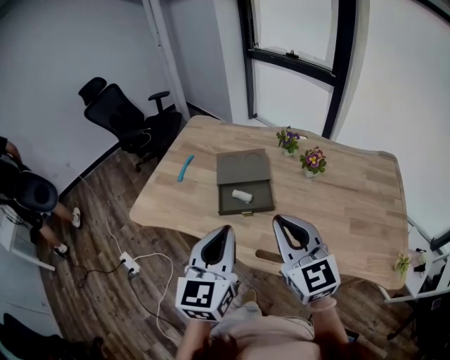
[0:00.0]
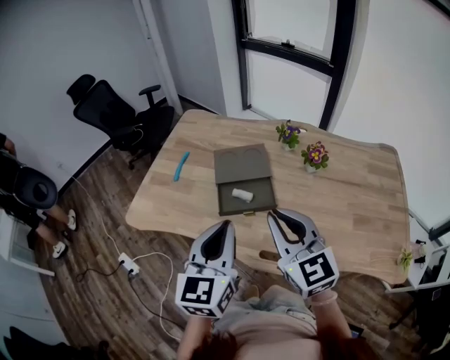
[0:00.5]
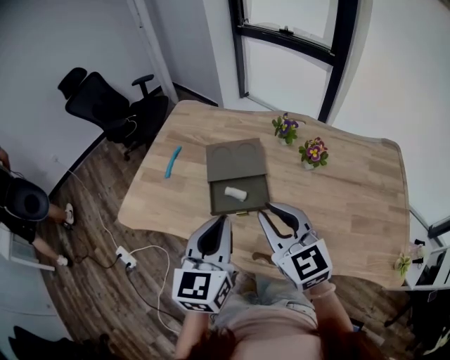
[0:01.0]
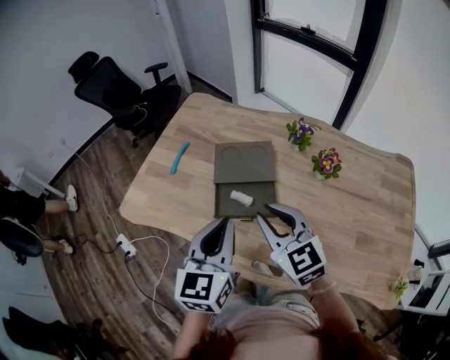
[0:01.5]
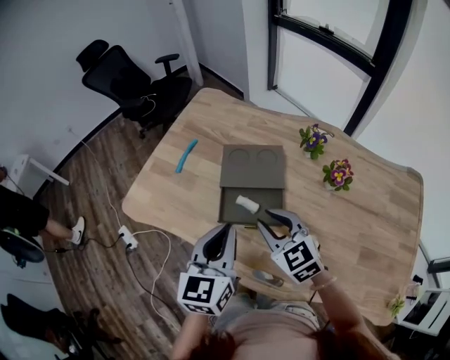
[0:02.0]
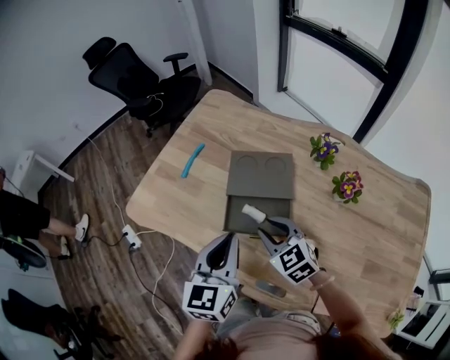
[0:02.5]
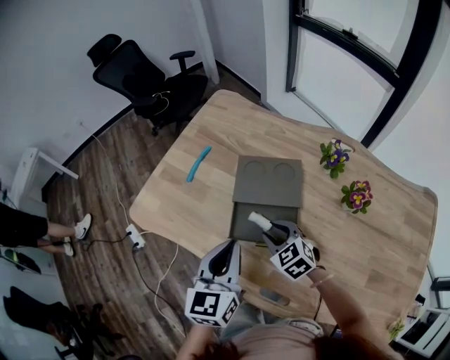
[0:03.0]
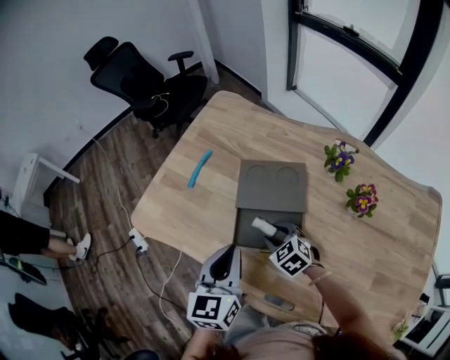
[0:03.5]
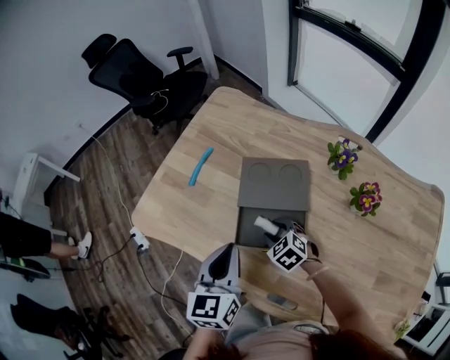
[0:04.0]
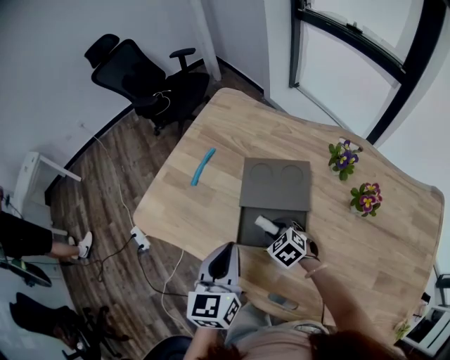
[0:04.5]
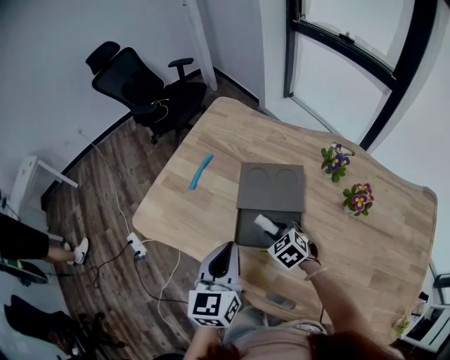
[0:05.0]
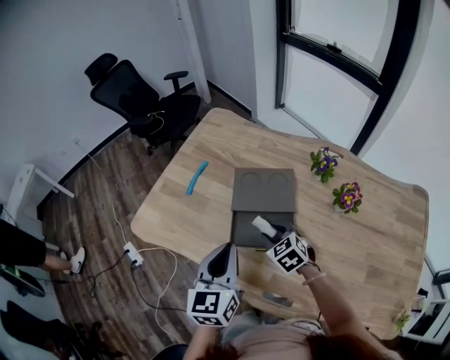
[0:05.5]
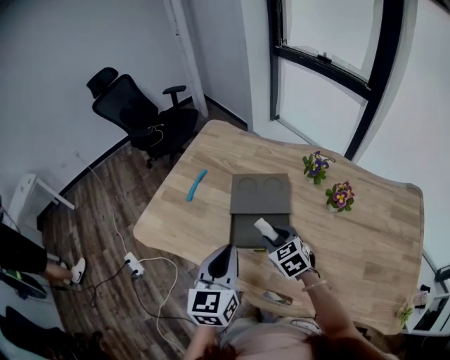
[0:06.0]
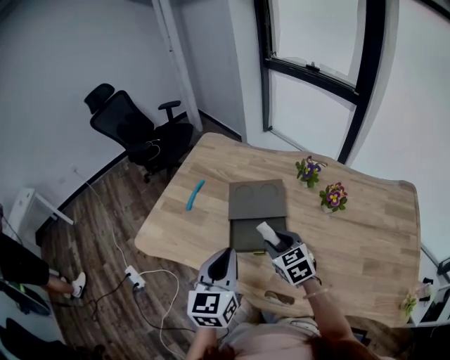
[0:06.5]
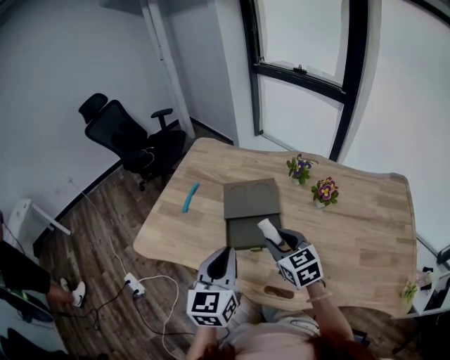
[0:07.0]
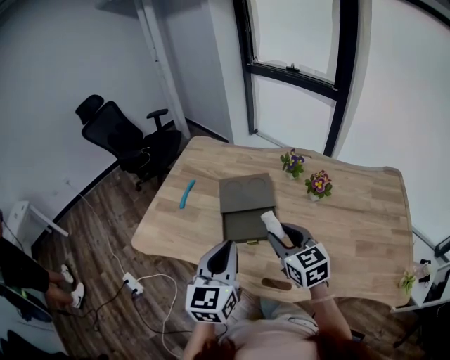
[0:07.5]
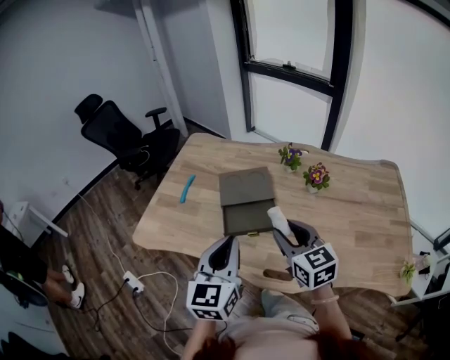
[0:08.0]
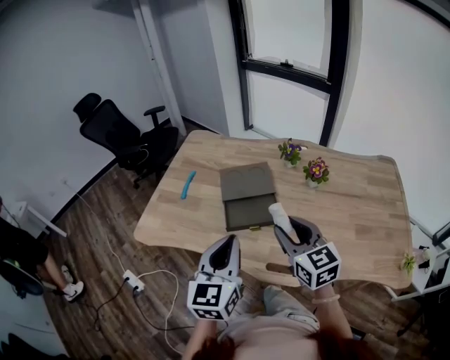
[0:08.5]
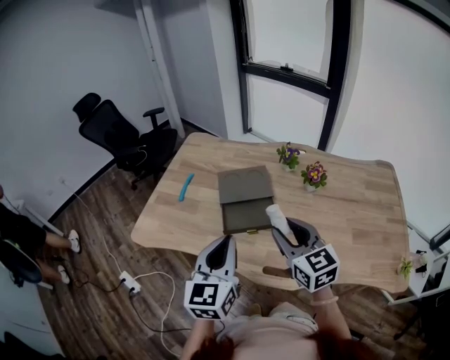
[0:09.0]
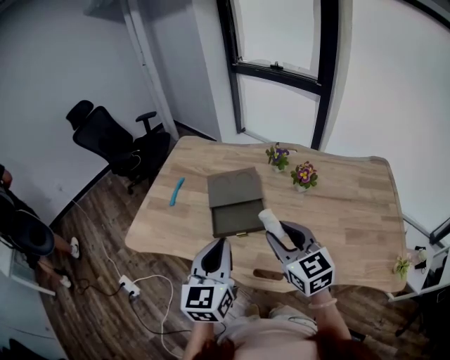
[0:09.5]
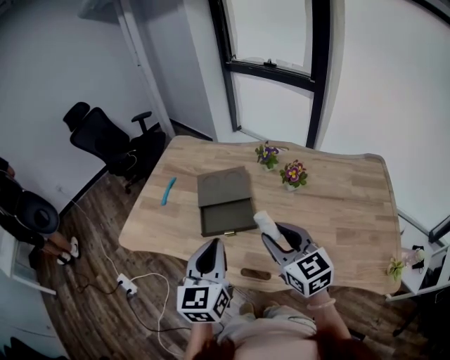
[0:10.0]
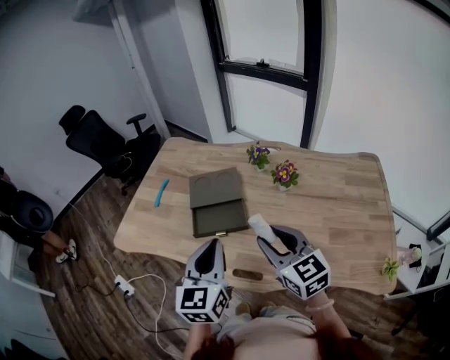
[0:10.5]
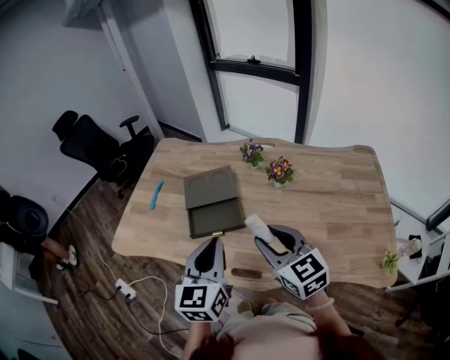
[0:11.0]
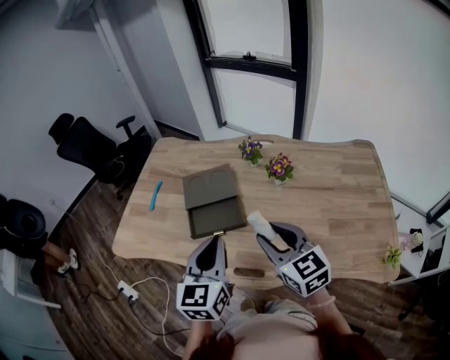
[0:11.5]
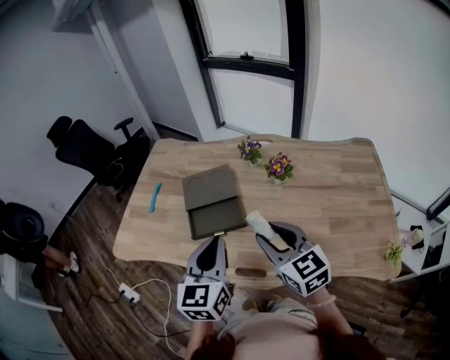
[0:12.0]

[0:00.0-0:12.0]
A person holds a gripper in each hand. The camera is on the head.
0:00.0 to 0:02.0: The two grippers go approximately 20 cm forward and downward. The right gripper rotates about 30 degrees.
0:02.0 to 0:04.0: The right gripper travels downward by some 20 cm, and rotates approximately 30 degrees; the left gripper is displaced downward and forward by about 10 cm.
0:04.0 to 0:06.0: The right gripper is displaced upward by some 10 cm; the left gripper is displaced upward by some 5 cm.
0:06.0 to 0:08.0: The left gripper shifts about 10 cm backward and upward; the right gripper is displaced upward and backward by approximately 20 cm, and swivels about 30 degrees.
0:08.0 to 0:10.0: The left gripper moves some 5 cm. Meanwhile the right gripper heads to the right, covering roughly 5 cm.
0:10.0 to 0:12.0: The grippers stay close to where they were, moving slightly.

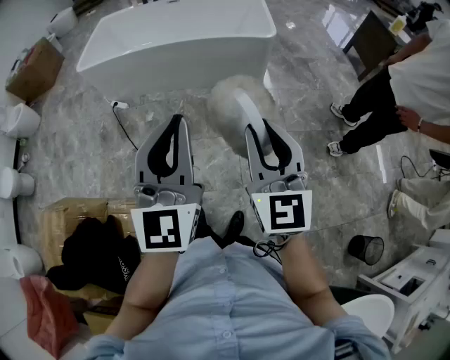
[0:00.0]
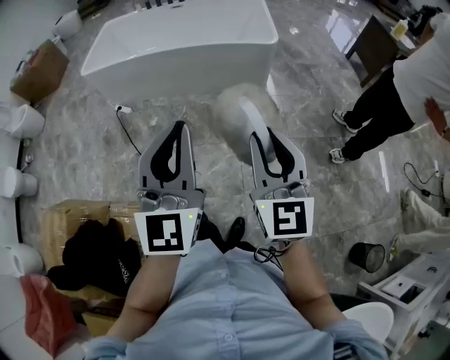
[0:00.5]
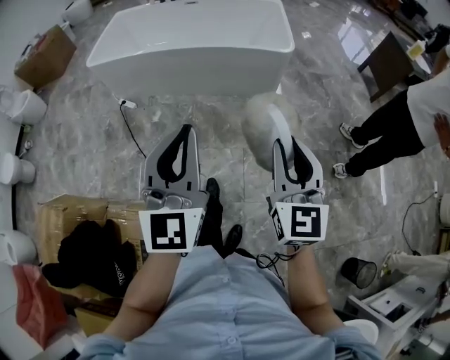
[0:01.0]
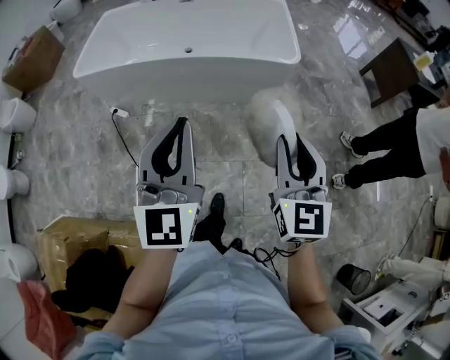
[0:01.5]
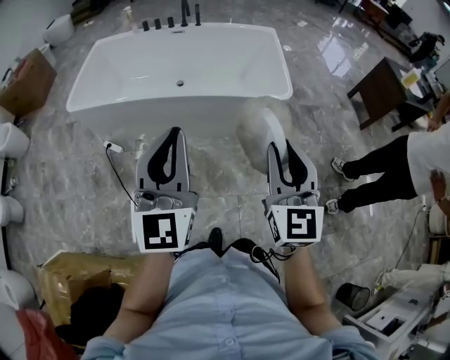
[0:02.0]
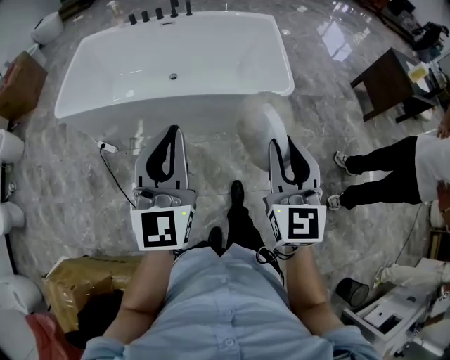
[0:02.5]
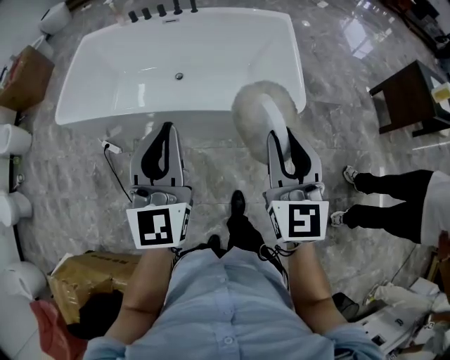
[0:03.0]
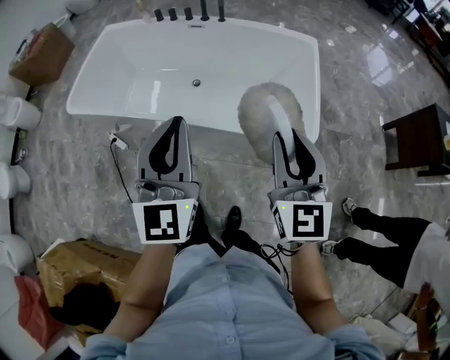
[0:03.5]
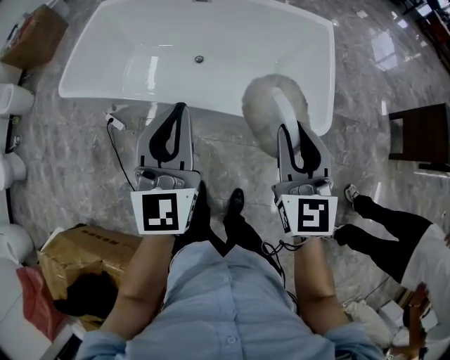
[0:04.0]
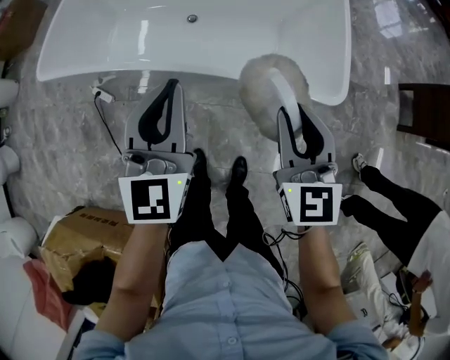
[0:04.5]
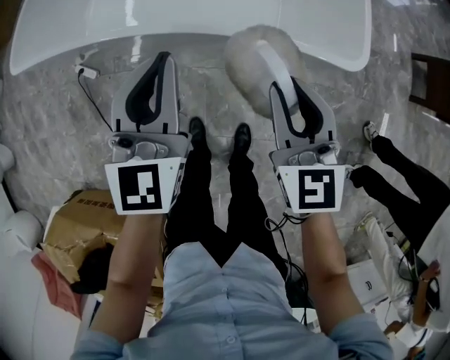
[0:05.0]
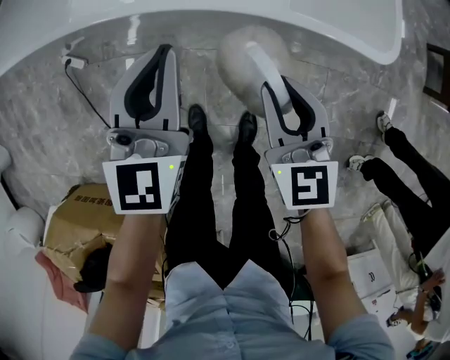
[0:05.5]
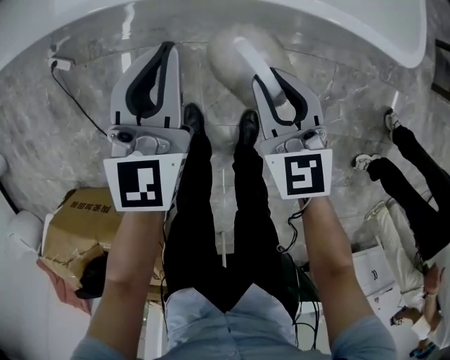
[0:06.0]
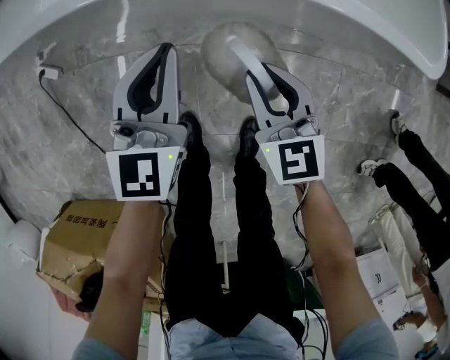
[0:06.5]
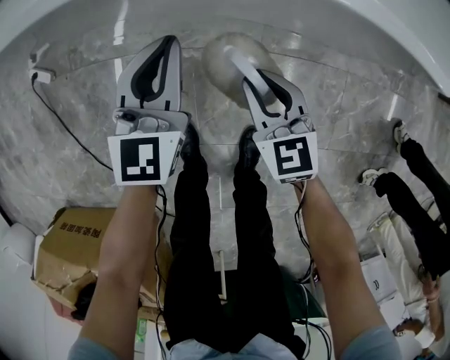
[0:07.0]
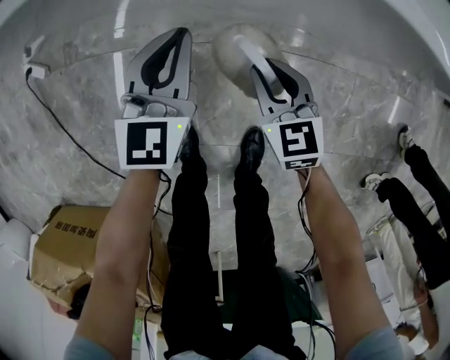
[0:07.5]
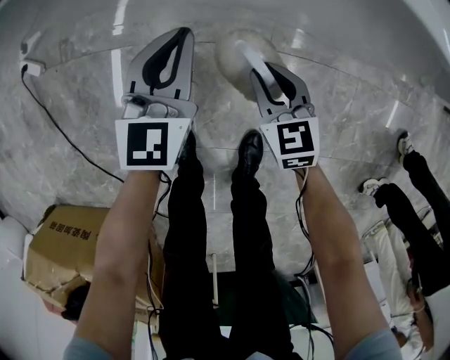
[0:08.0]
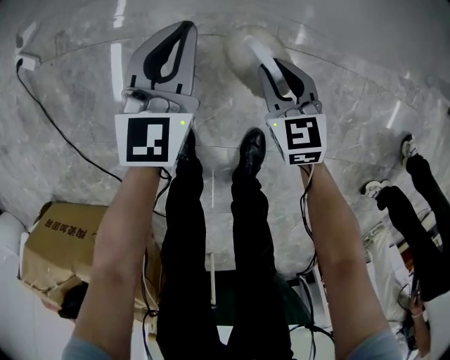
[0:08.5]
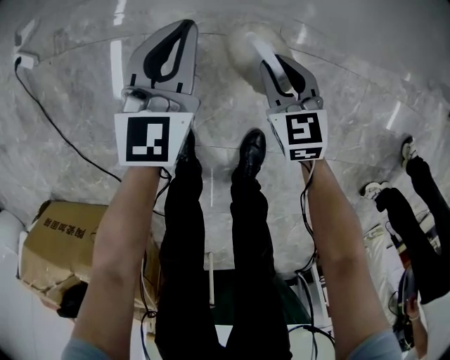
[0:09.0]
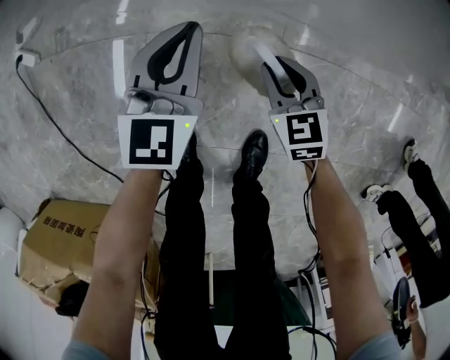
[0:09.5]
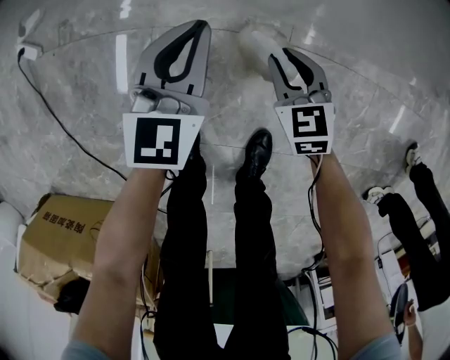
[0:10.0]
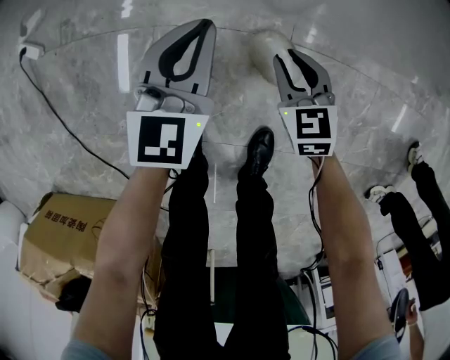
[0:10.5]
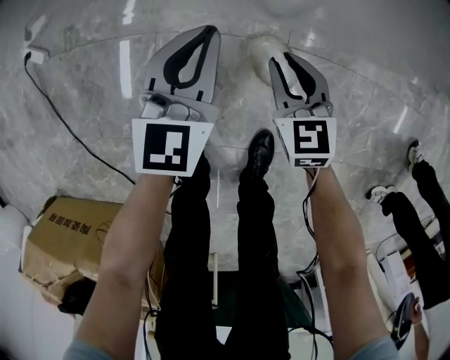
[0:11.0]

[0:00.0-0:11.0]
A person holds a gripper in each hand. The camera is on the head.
0:00.0 to 0:02.0: Both grippers travel together forward, approximately 35 cm.
0:02.0 to 0:03.5: The two grippers go some 35 cm forward.
0:03.5 to 0:05.5: The grippers both shift downward by approximately 40 cm. The left gripper rotates about 20 degrees. The right gripper turns by approximately 20 degrees.
0:05.5 to 0:07.5: Both grippers move downward, some 35 cm.
0:07.5 to 0:09.0: The two grippers go approximately 5 cm downward.
0:09.0 to 0:11.0: The grippers stay close to where they were, moving slightly.

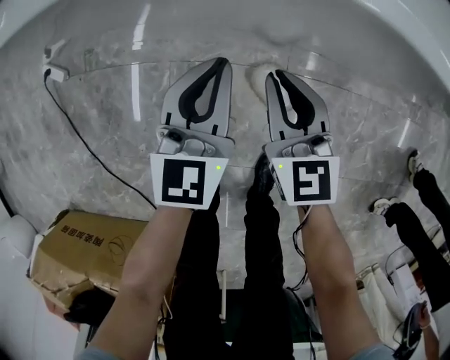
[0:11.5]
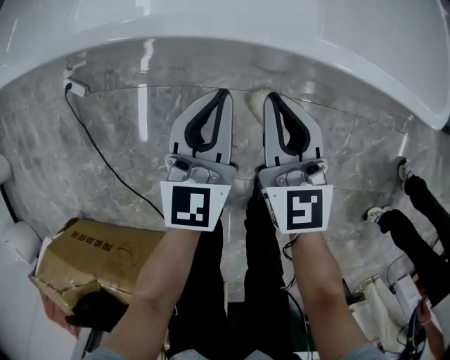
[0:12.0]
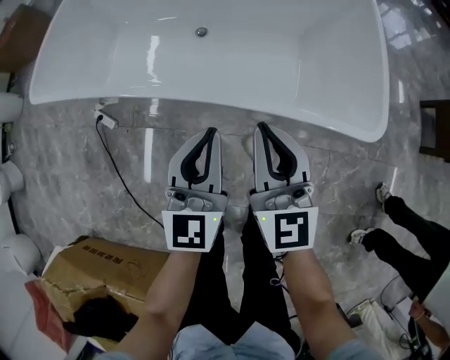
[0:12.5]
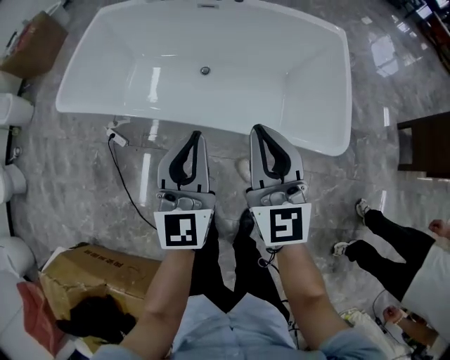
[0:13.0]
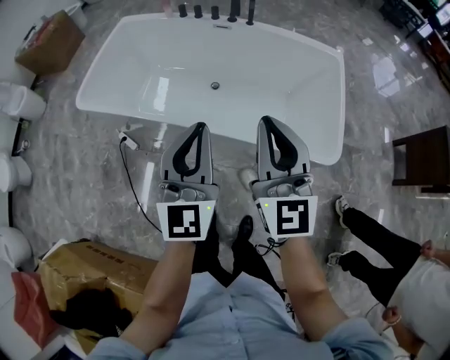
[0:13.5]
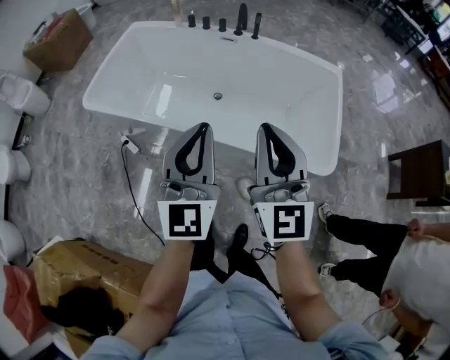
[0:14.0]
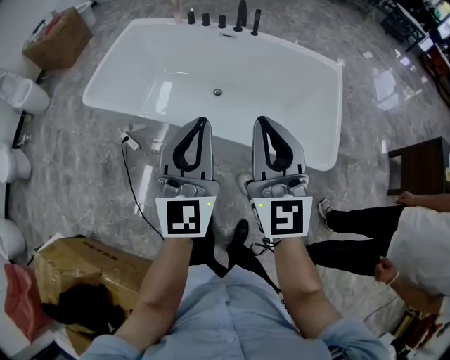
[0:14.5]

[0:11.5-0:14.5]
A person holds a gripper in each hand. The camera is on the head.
0:11.5 to 0:13.0: The two grippers go some 60 cm upward. The left gripper changes its angle by some 20 degrees. The right gripper swivels about 30 degrees.
0:13.0 to 0:14.5: Both grippers travel together upward, about 15 cm.

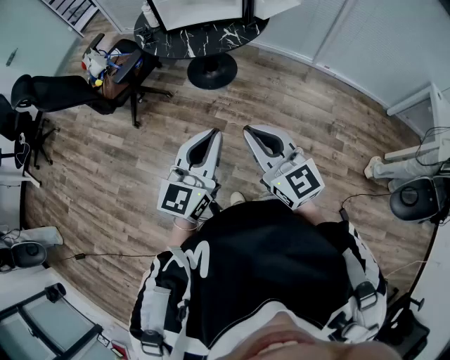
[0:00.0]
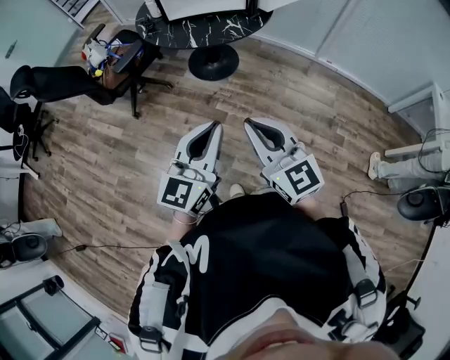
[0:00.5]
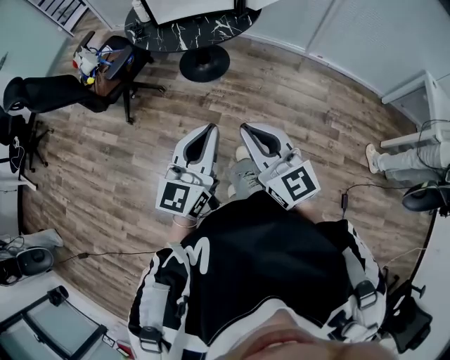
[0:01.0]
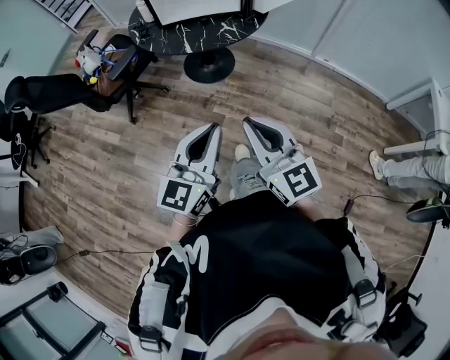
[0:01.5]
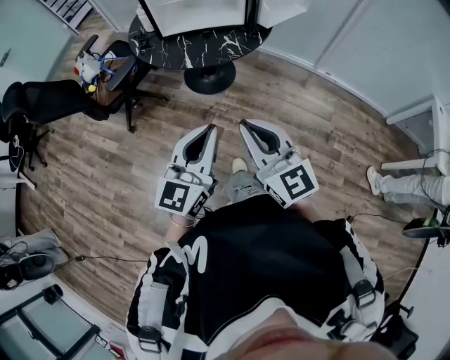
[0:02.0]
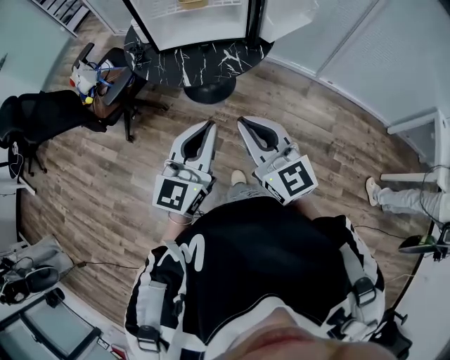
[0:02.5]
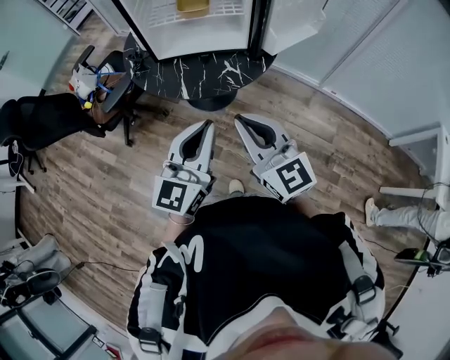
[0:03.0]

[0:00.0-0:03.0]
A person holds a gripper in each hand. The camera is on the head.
0:00.0 to 0:01.5: The grippers make only small movements.
0:01.5 to 0:03.0: The two grippers go approximately 25 cm forward.
